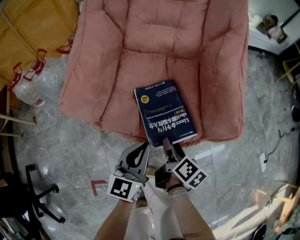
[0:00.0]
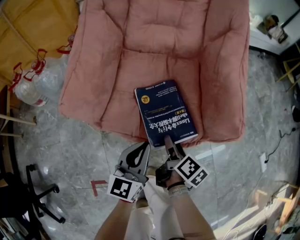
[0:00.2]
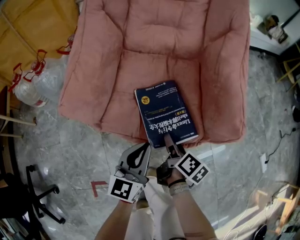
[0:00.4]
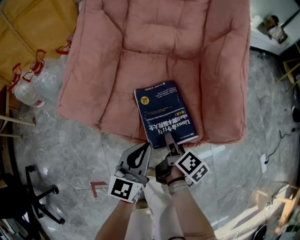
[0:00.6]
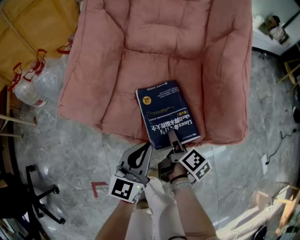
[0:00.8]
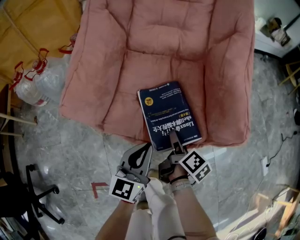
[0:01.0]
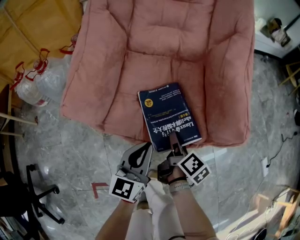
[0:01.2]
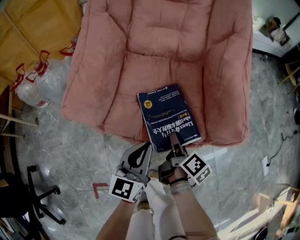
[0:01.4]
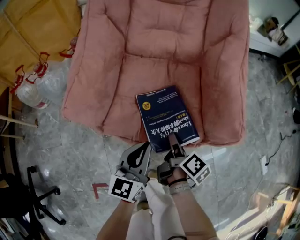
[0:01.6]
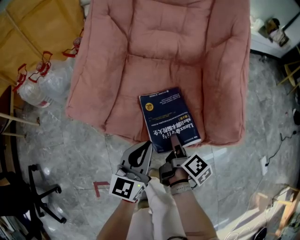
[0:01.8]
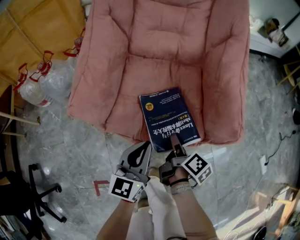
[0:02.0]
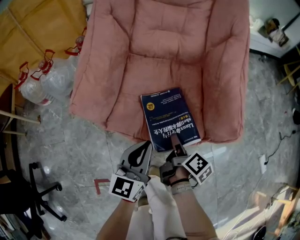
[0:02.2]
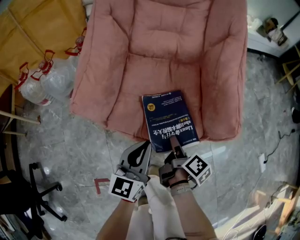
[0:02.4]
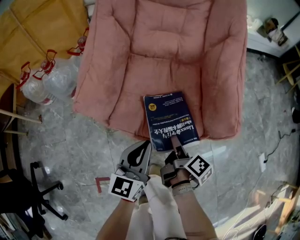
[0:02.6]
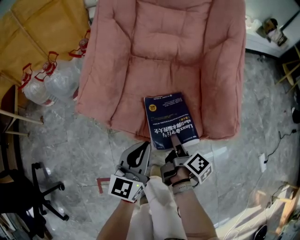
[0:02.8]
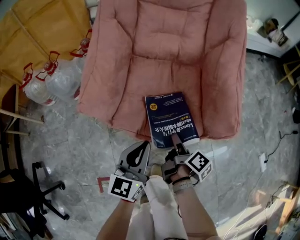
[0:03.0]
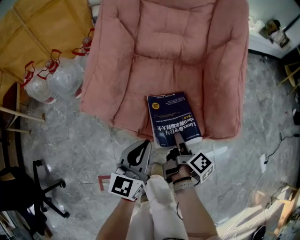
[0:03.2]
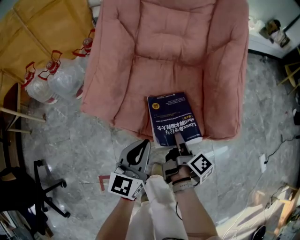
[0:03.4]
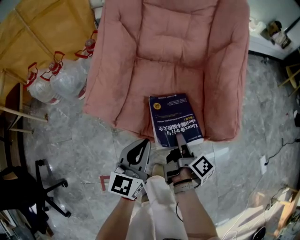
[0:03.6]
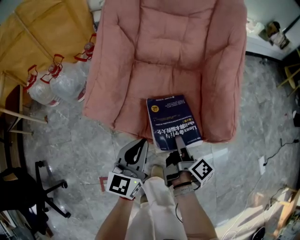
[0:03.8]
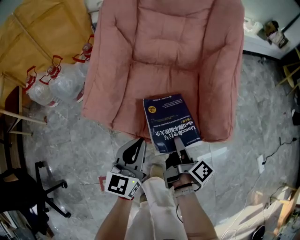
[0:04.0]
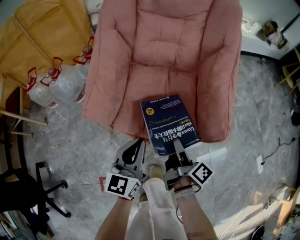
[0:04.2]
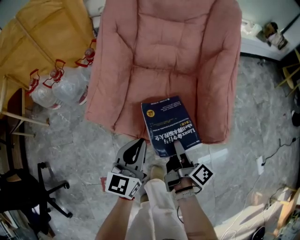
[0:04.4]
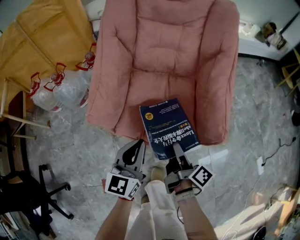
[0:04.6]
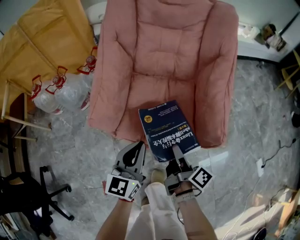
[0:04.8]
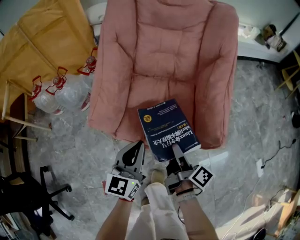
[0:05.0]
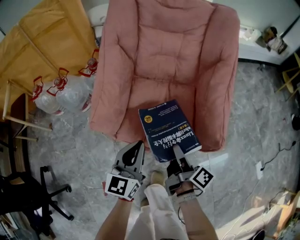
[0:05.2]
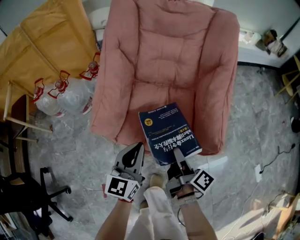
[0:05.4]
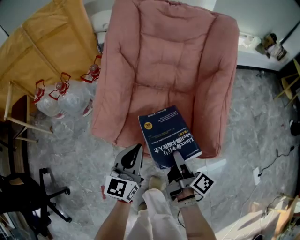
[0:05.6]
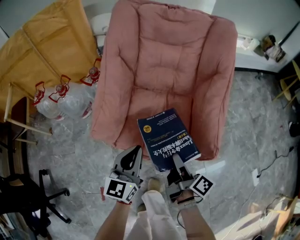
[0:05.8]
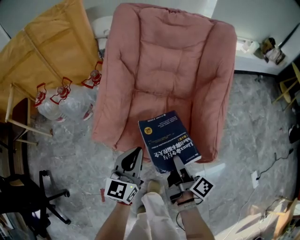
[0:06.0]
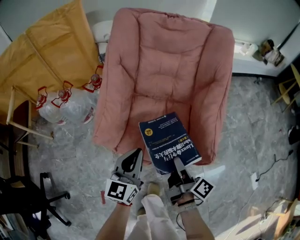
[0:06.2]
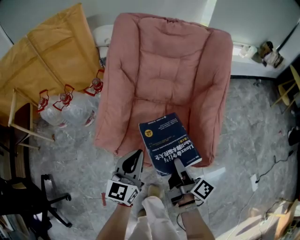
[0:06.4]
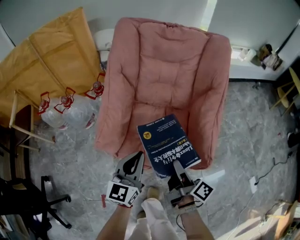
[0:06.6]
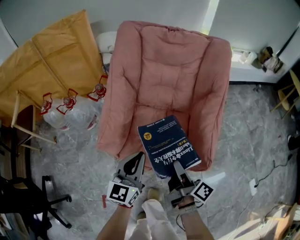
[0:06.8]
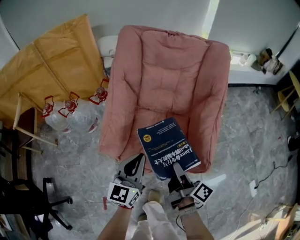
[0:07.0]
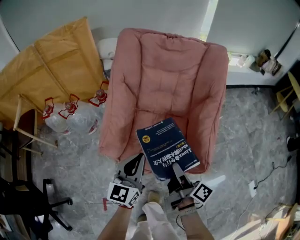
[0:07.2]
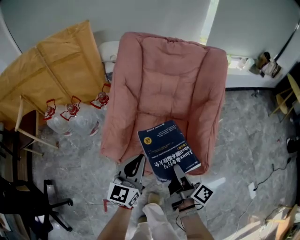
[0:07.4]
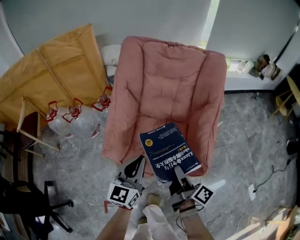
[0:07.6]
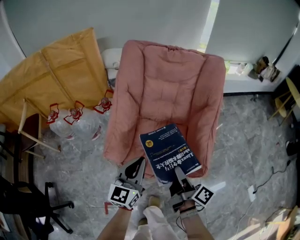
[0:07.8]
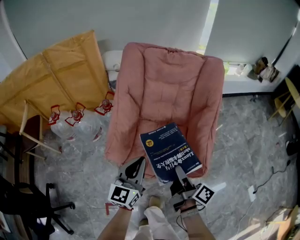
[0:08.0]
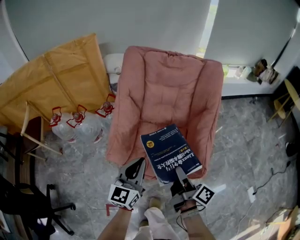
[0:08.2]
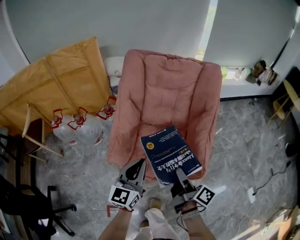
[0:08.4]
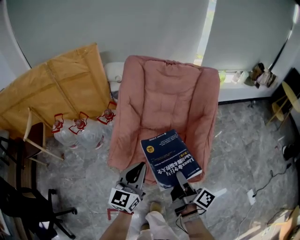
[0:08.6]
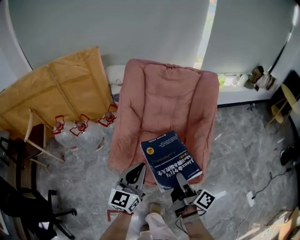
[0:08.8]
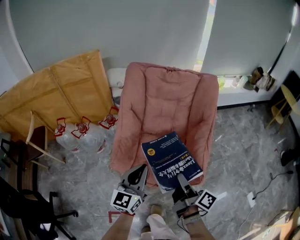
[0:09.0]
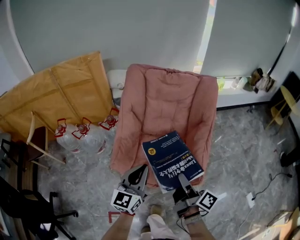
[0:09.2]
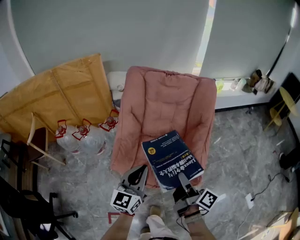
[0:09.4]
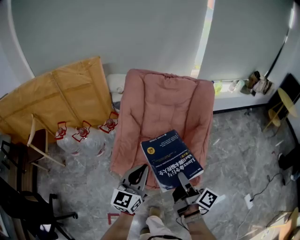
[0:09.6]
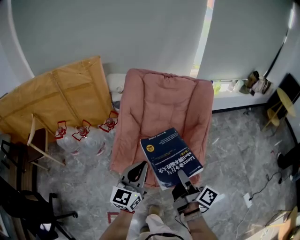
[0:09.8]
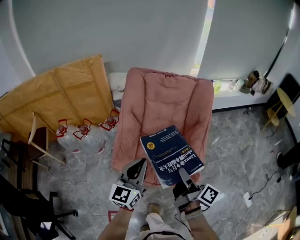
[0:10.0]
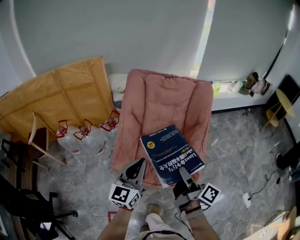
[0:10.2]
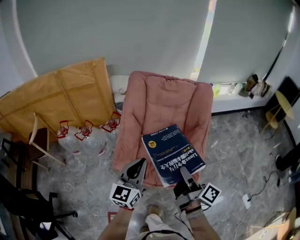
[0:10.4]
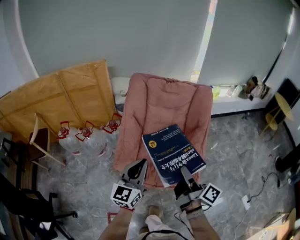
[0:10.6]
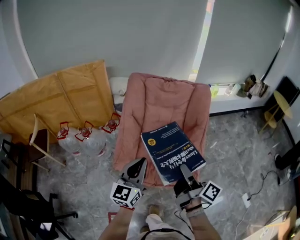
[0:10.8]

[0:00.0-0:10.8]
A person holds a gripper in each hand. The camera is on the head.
0:00.0 to 0:01.6: The right gripper closes its fingers.
0:01.6 to 0:03.0: The left gripper changes place by some 5 cm.
0:03.0 to 0:04.6: The two grippers go roughly 10 cm upward.
0:04.6 to 0:06.2: Both grippers move upward, roughly 5 cm.
0:06.2 to 0:07.8: The two grippers go some 10 cm upward.
0:07.8 to 0:09.2: The two grippers go about 10 cm upward.
0:09.2 to 0:10.8: Both grippers travel together upward, approximately 10 cm.

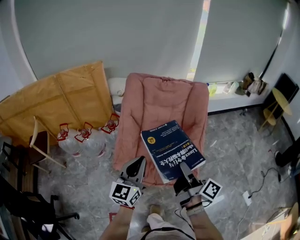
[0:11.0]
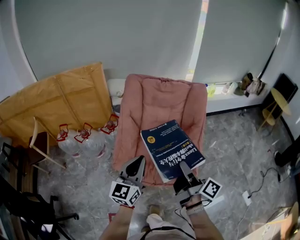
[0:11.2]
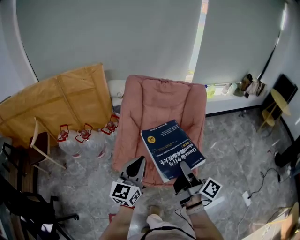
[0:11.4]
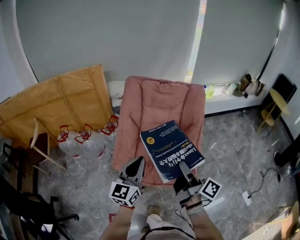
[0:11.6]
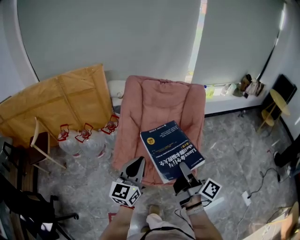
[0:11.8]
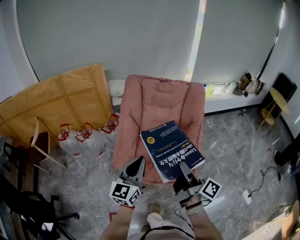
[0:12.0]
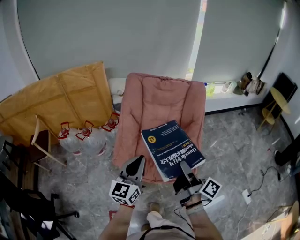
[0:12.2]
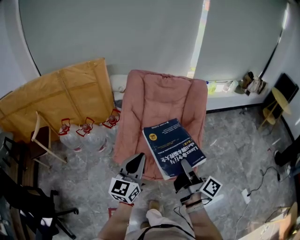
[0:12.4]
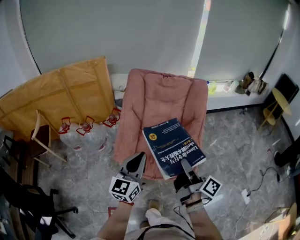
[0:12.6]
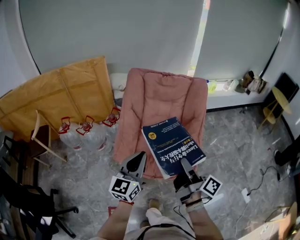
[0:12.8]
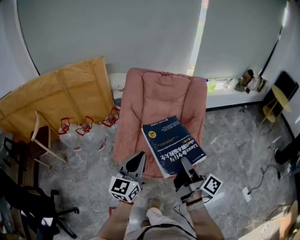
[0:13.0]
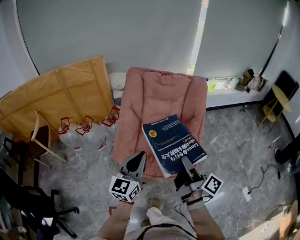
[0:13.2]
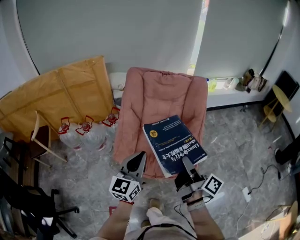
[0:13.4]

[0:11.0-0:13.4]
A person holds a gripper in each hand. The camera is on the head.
0:11.0 to 0:12.2: There are only small adjustments of the grippers.
0:12.2 to 0:13.4: Both grippers stay put.

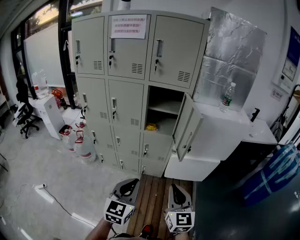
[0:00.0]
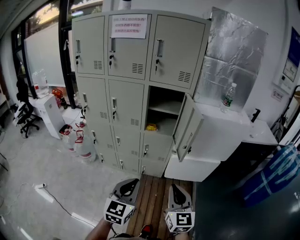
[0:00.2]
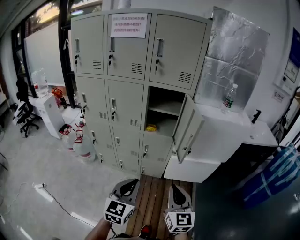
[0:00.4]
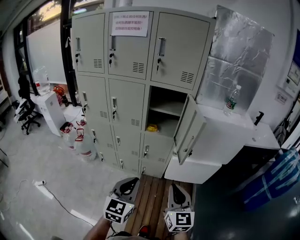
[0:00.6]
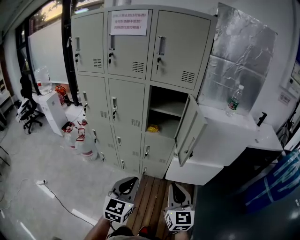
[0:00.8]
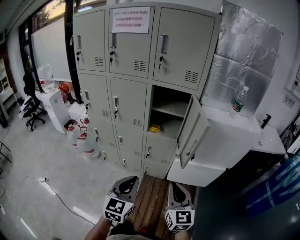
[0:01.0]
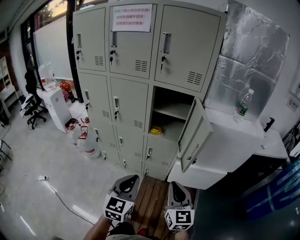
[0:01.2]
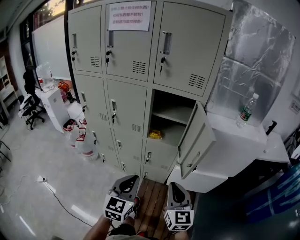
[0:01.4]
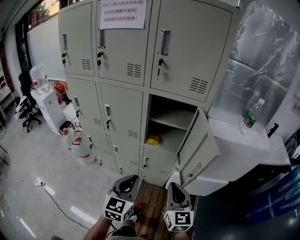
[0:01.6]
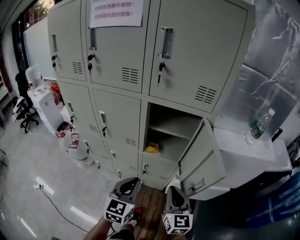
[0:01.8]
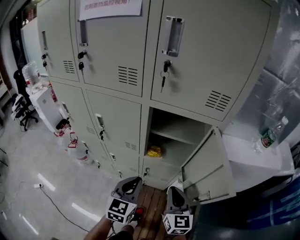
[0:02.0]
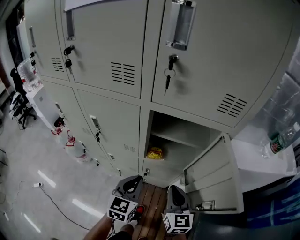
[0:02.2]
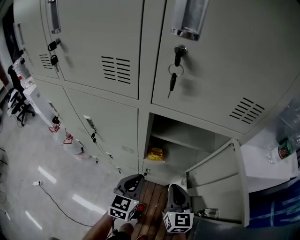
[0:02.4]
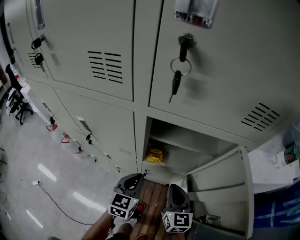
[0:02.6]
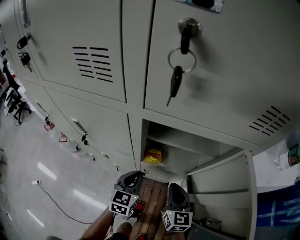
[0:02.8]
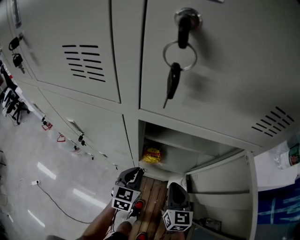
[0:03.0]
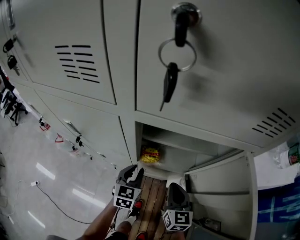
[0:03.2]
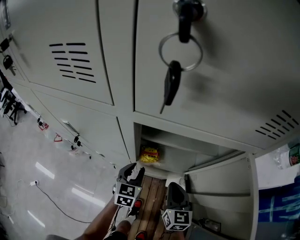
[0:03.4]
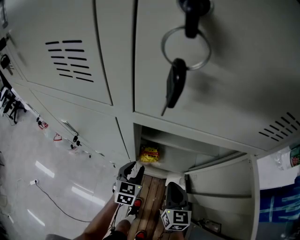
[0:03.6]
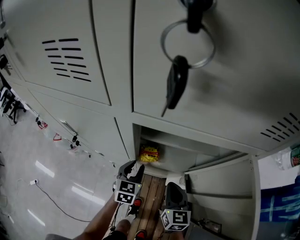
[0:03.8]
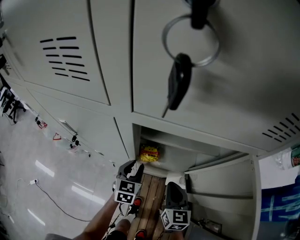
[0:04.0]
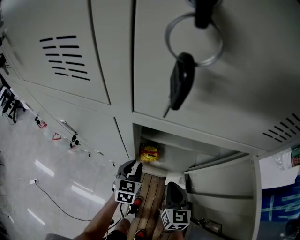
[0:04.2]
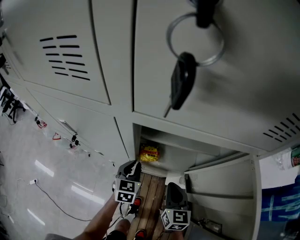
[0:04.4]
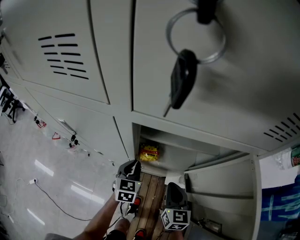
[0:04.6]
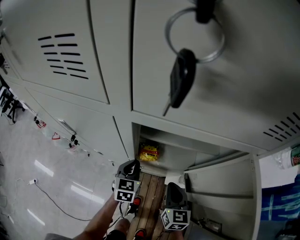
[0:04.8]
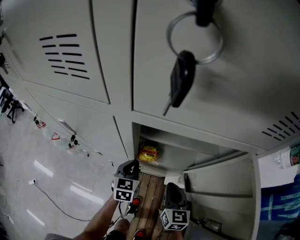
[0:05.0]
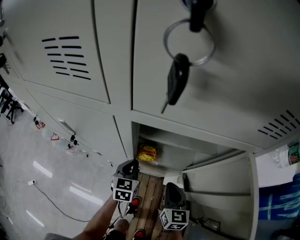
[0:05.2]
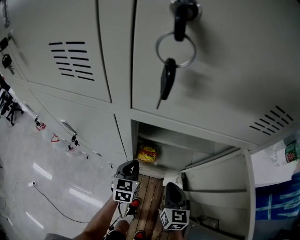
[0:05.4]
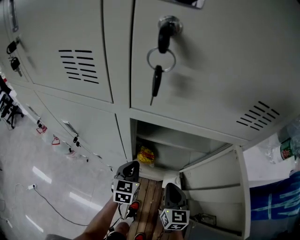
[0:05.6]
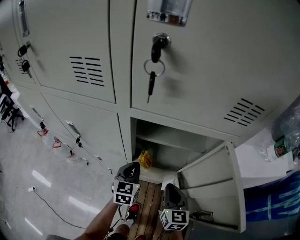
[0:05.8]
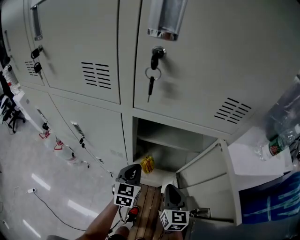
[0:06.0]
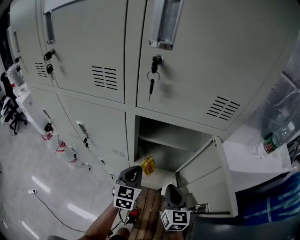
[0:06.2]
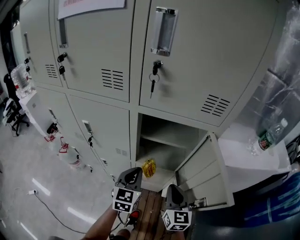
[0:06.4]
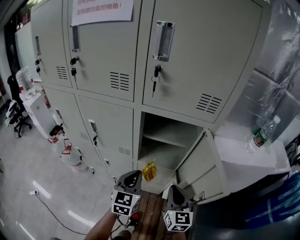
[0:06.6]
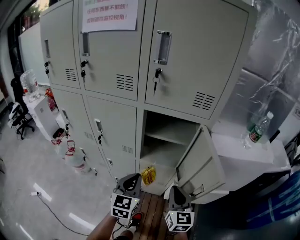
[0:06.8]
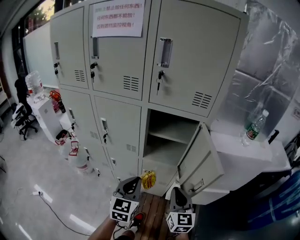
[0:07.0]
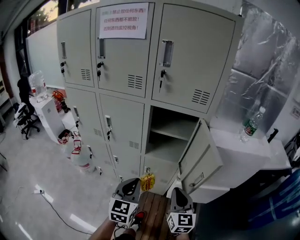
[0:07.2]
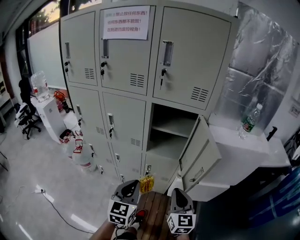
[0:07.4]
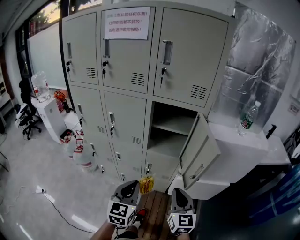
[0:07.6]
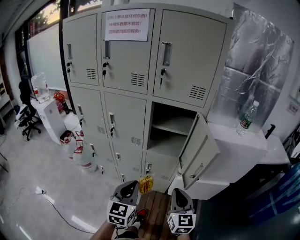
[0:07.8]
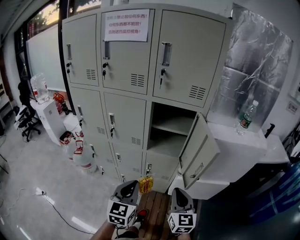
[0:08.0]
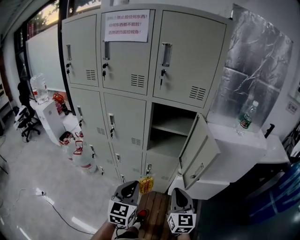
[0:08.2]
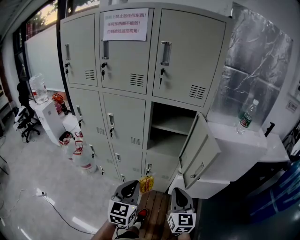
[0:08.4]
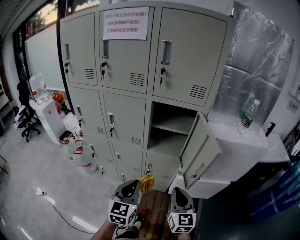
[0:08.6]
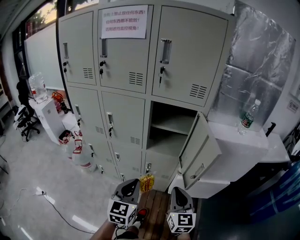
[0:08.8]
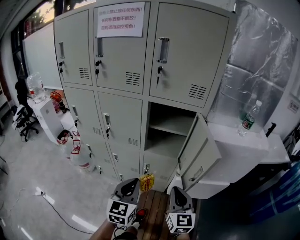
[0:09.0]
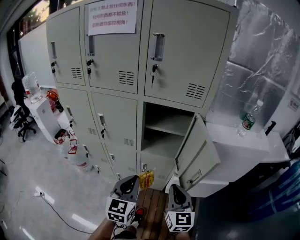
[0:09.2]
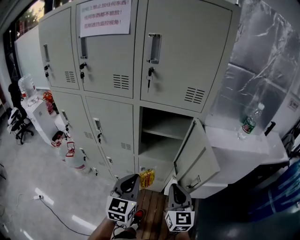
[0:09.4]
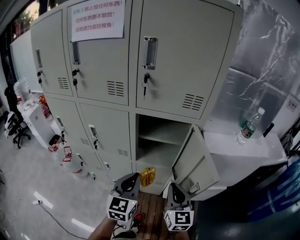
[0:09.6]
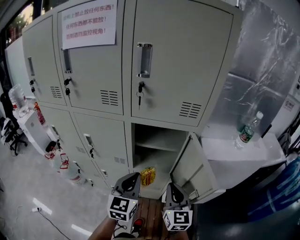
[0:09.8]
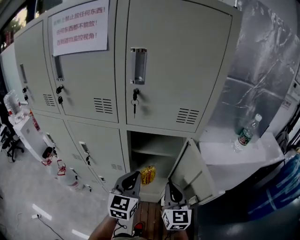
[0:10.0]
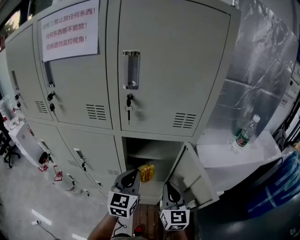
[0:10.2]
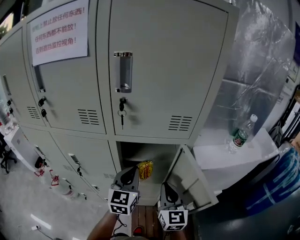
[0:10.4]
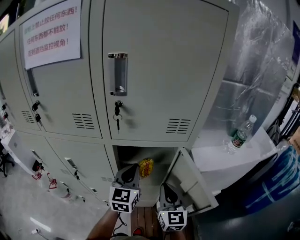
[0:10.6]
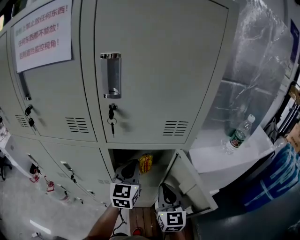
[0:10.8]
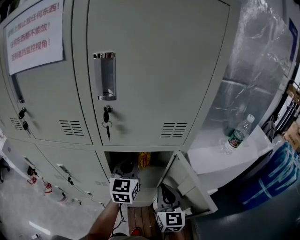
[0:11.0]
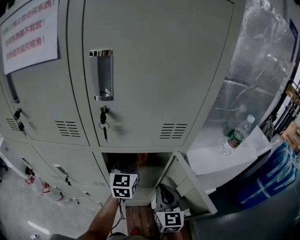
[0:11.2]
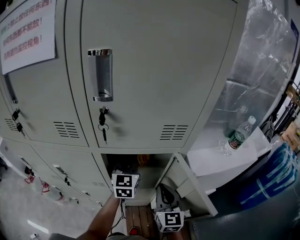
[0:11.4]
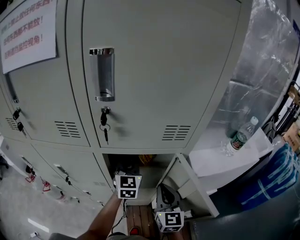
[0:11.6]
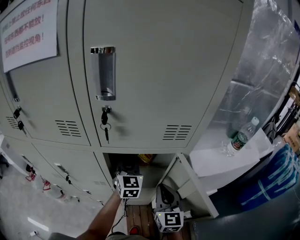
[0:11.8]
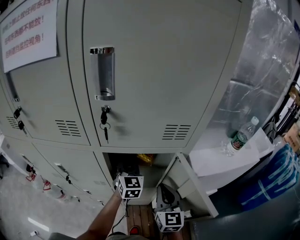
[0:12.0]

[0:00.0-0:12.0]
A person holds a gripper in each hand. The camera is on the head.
0:00.0 to 0:01.6: The grippers both shift forward by about 20 cm.
0:01.6 to 0:03.0: The two grippers go approximately 30 cm forward and downward.
0:03.0 to 0:04.4: The left gripper ends up roughly 5 cm from where it was.
0:04.4 to 0:06.0: The left gripper shifts roughly 10 cm upward. Meanwhile the right gripper heads upward, covering roughly 5 cm.
0:06.0 to 0:07.6: The two grippers go some 30 cm backward and upward.
0:07.6 to 0:09.0: There are only small adjustments of the grippers.
0:09.0 to 0:10.4: The two grippers go approximately 25 cm forward.
0:10.4 to 0:12.0: The left gripper moves forward and downward, approximately 15 cm.
